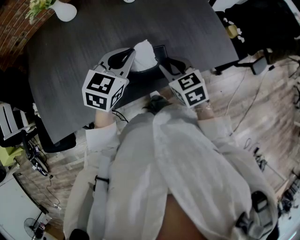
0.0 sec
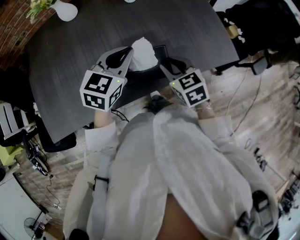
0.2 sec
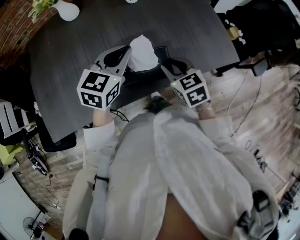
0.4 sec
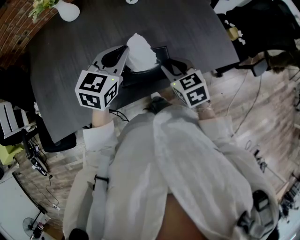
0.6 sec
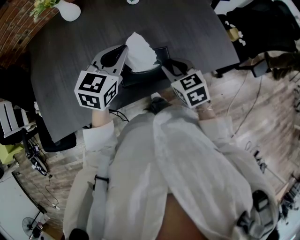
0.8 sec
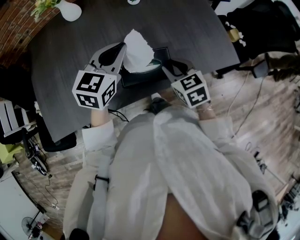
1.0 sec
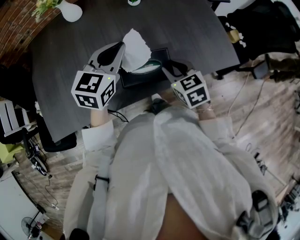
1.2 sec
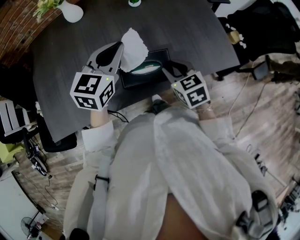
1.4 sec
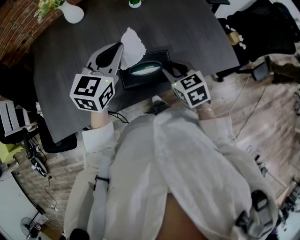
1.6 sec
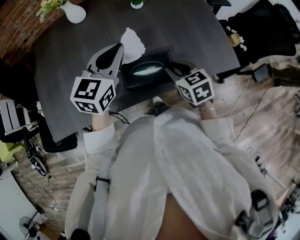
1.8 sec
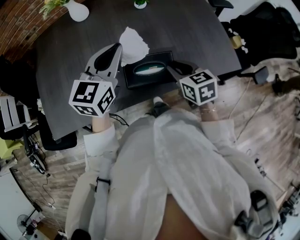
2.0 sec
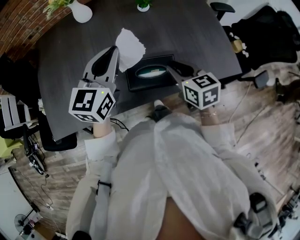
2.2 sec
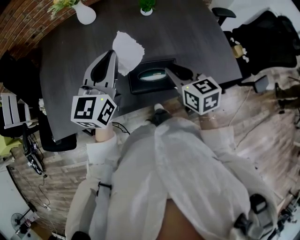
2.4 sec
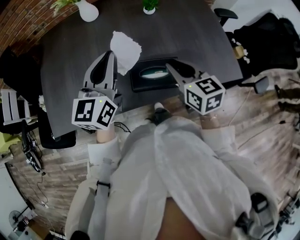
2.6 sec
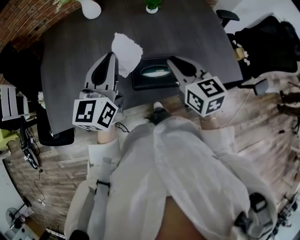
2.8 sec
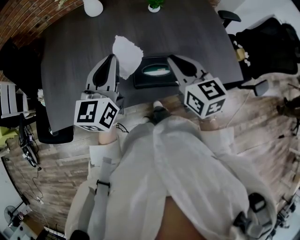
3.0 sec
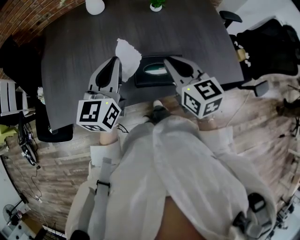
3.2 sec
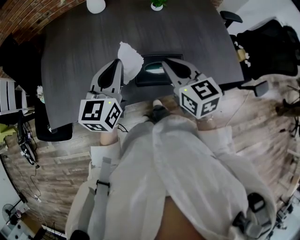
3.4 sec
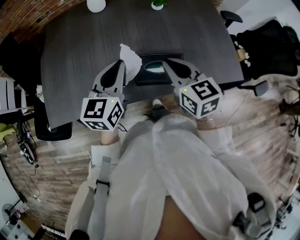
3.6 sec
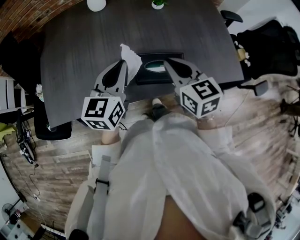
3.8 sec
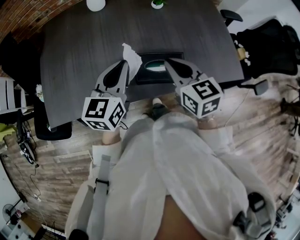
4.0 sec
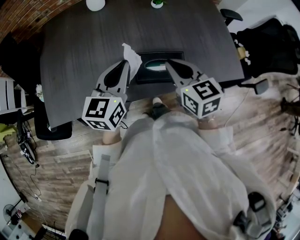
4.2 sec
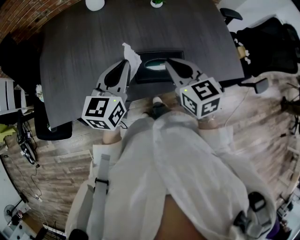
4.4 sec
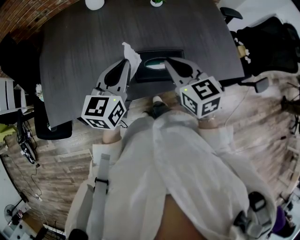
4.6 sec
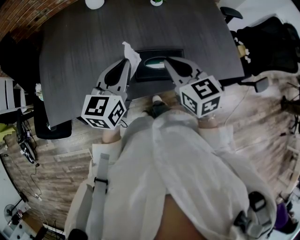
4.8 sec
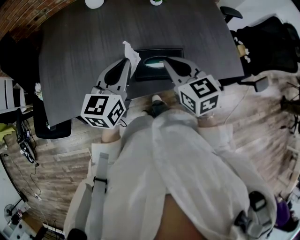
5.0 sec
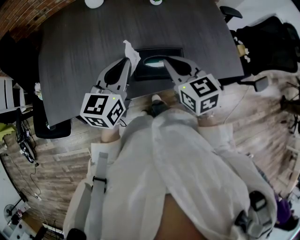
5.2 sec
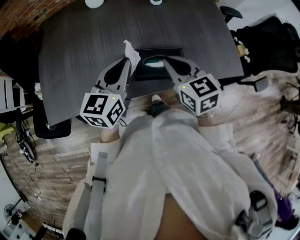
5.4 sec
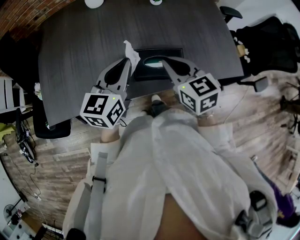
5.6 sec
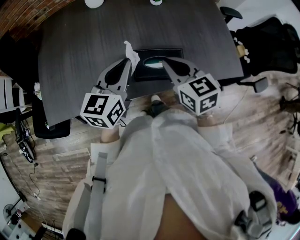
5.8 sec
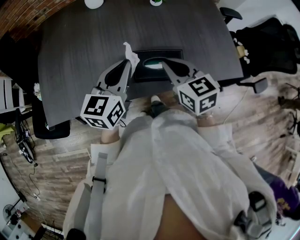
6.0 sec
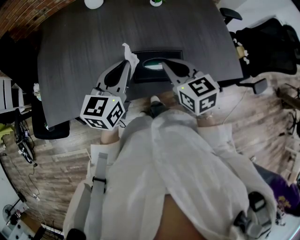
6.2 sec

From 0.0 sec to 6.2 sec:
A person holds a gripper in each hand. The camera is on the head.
From 0.0 sec to 1.6 sec: The left gripper shifts approximately 5 cm upward.
From 1.6 sec to 3.2 sec: The right gripper is displaced upward and to the left by some 15 cm, rotates about 20 degrees, and closes, while the left gripper goes roughly 10 cm to the left and backward, and turns by roughly 20 degrees.
From 3.2 sec to 6.2 sec: The grippers stay close to where they were, moving slightly.

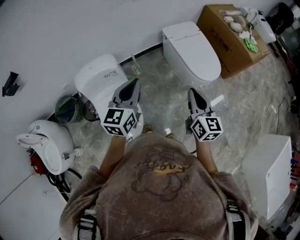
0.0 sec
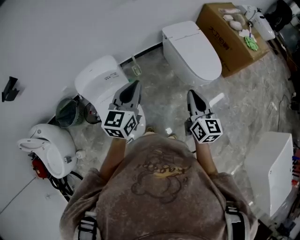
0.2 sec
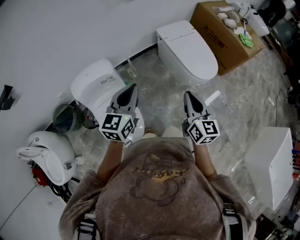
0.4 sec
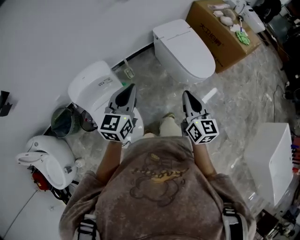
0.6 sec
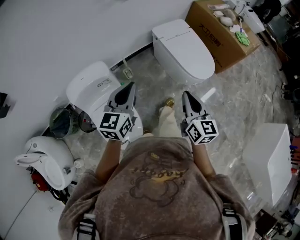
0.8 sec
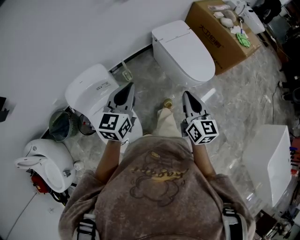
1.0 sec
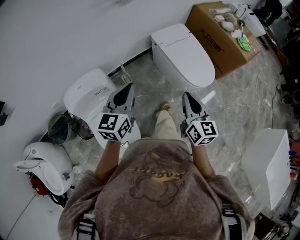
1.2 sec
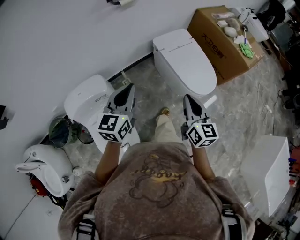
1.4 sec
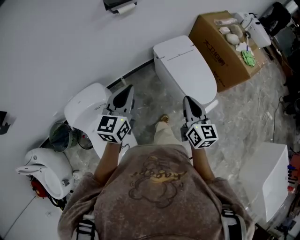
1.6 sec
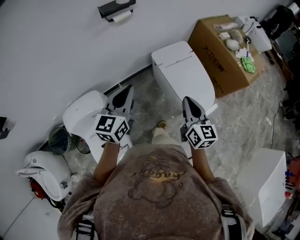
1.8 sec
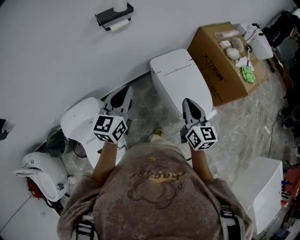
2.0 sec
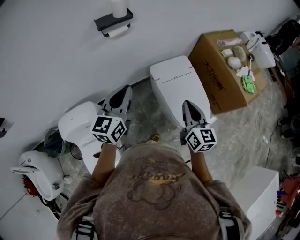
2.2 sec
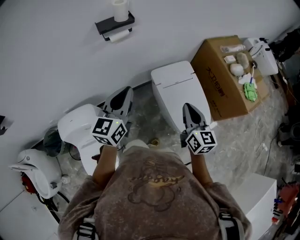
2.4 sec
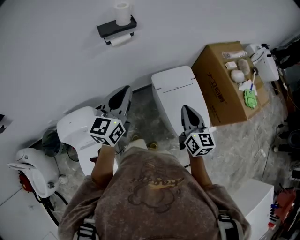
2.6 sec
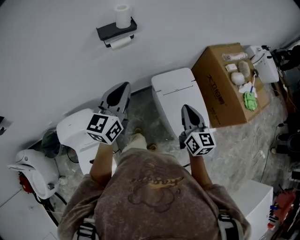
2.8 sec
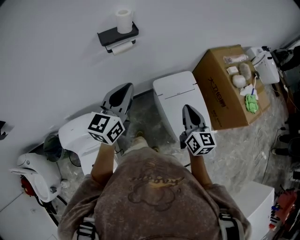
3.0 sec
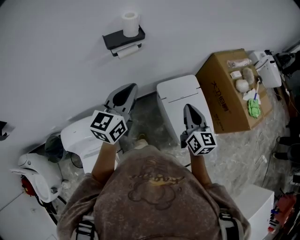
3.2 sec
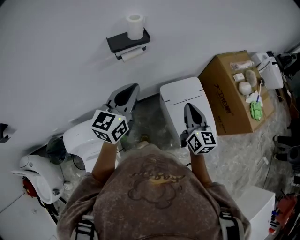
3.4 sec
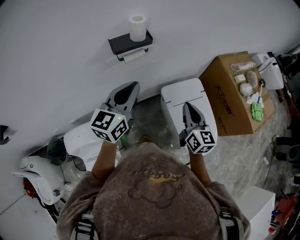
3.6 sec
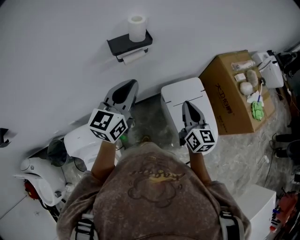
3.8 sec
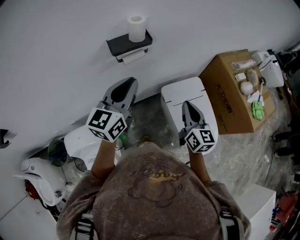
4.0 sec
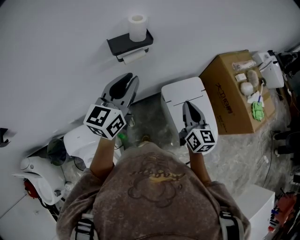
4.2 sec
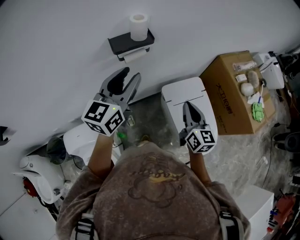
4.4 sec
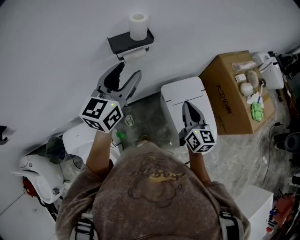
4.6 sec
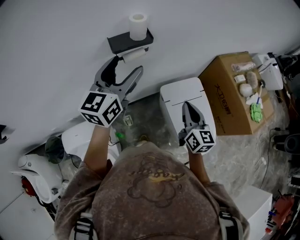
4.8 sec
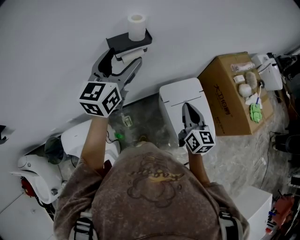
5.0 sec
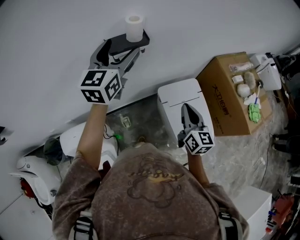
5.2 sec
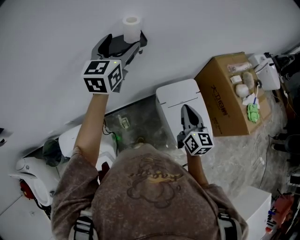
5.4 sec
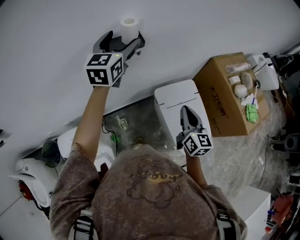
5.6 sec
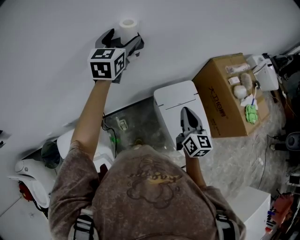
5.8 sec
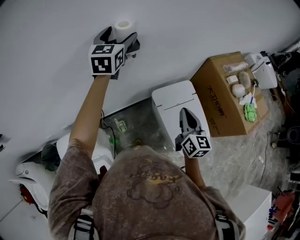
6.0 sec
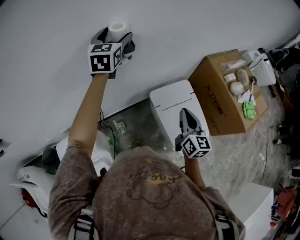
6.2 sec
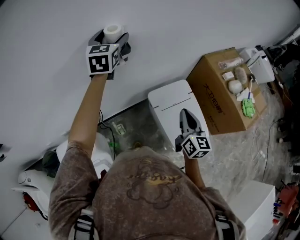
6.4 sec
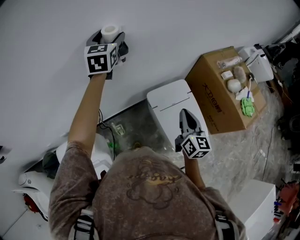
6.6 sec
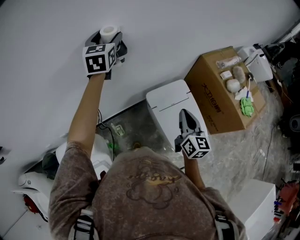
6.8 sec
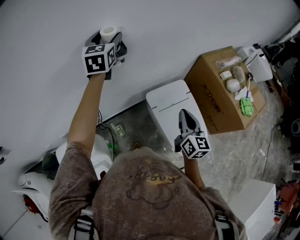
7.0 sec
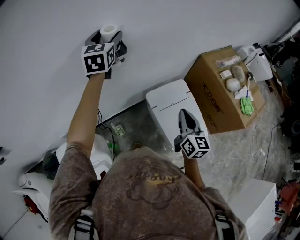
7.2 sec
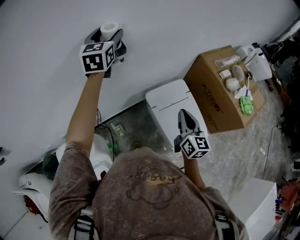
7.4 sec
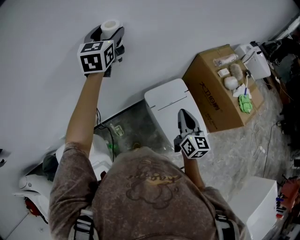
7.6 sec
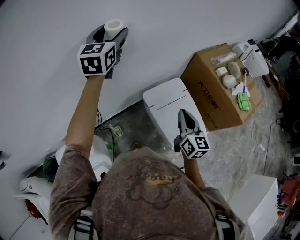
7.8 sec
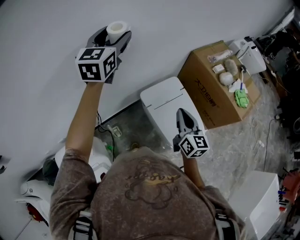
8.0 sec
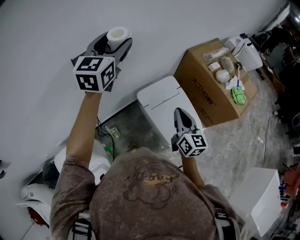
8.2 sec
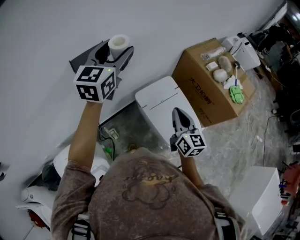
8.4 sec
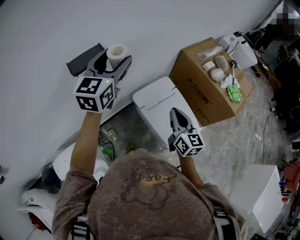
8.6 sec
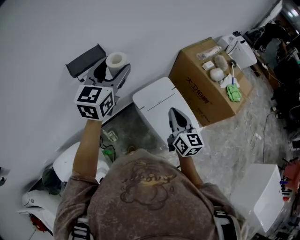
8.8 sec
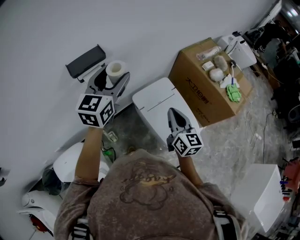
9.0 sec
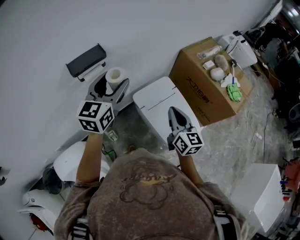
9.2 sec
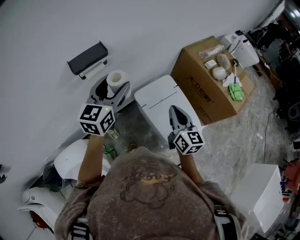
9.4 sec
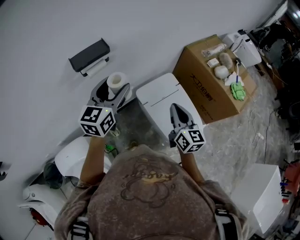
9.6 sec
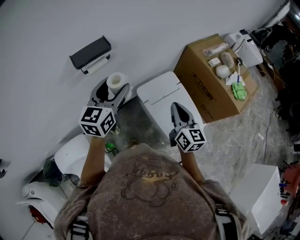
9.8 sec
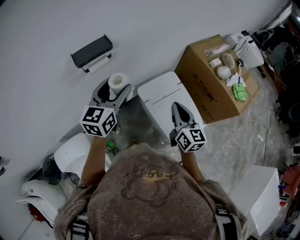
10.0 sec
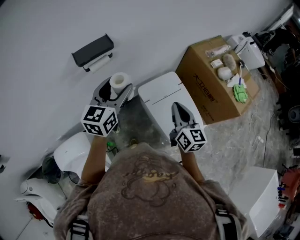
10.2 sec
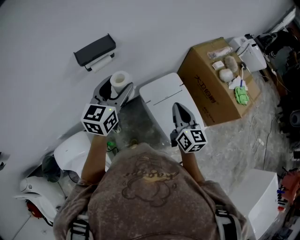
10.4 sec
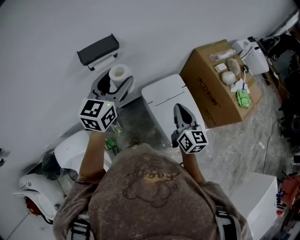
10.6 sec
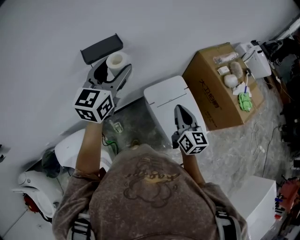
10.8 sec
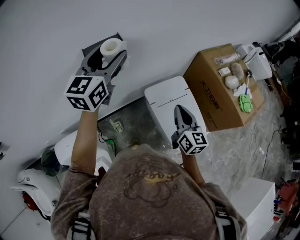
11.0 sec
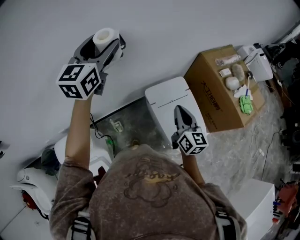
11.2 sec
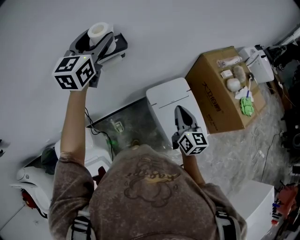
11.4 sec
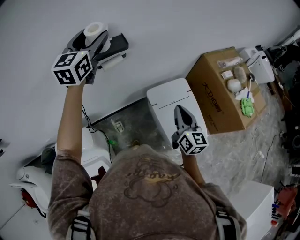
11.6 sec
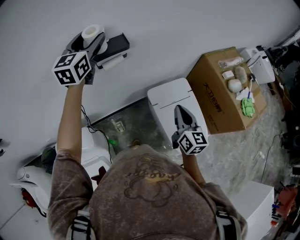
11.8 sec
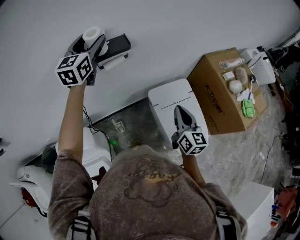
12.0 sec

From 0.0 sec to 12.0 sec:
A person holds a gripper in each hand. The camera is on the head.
From 0.0 sec to 1.6 sec: Both grippers travel together forward, roughly 20 cm.
From 1.6 sec to 3.0 sec: The grippers both shift forward by approximately 25 cm.
From 3.0 sec to 4.4 sec: Both grippers move forward and to the left, roughly 10 cm.
From 4.4 sec to 6.0 sec: The left gripper goes some 20 cm forward, and opens up.
From 6.0 sec to 7.6 sec: The grippers make only small movements.
From 7.6 sec to 9.0 sec: The left gripper shifts approximately 20 cm backward, to the right and downward, and rotates approximately 20 degrees.
From 9.0 sec to 10.4 sec: The left gripper heads downward, covering about 5 cm.
From 10.4 sec to 12.0 sec: The left gripper moves to the left, forward and upward, some 25 cm, and rotates approximately 20 degrees.

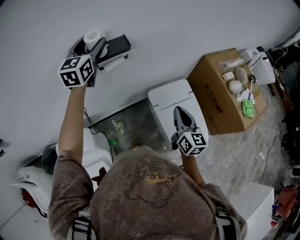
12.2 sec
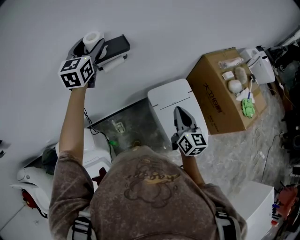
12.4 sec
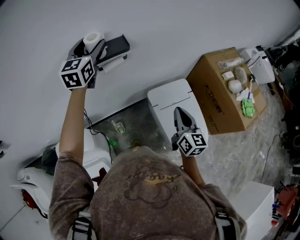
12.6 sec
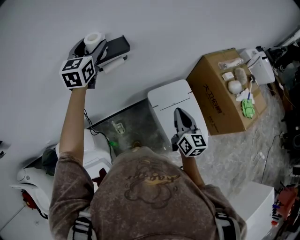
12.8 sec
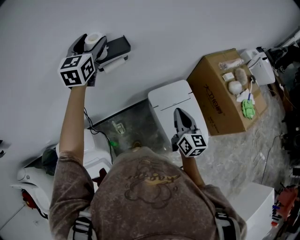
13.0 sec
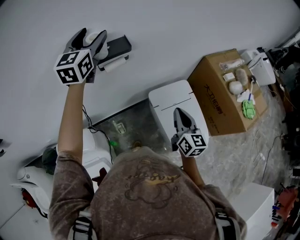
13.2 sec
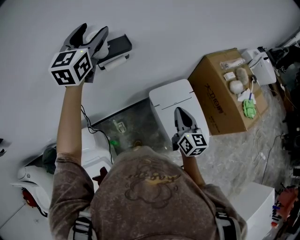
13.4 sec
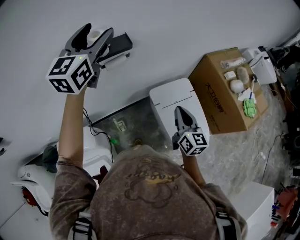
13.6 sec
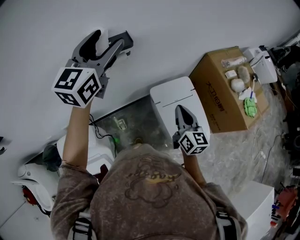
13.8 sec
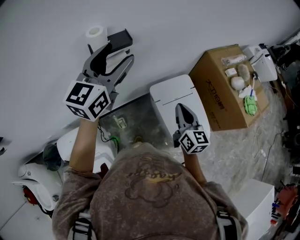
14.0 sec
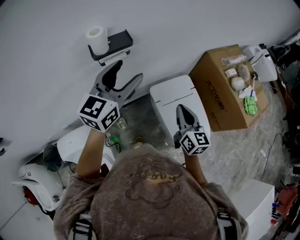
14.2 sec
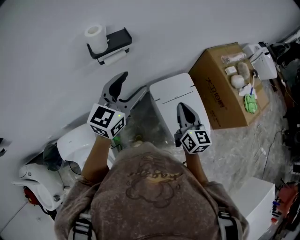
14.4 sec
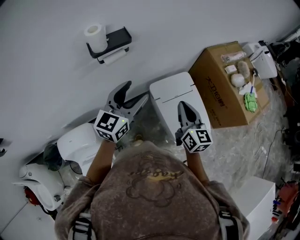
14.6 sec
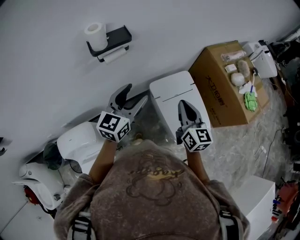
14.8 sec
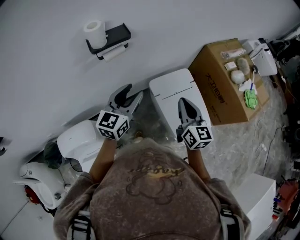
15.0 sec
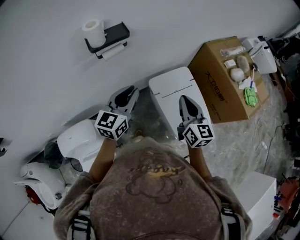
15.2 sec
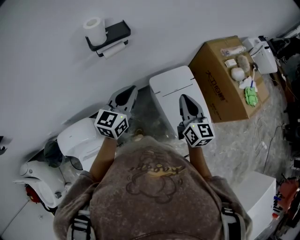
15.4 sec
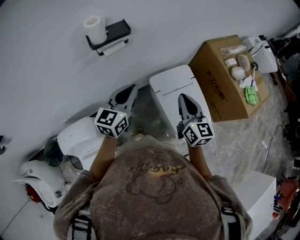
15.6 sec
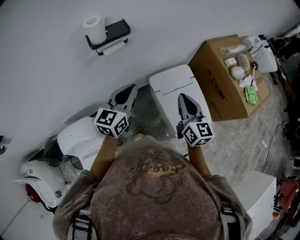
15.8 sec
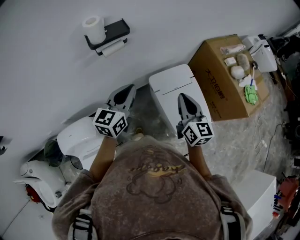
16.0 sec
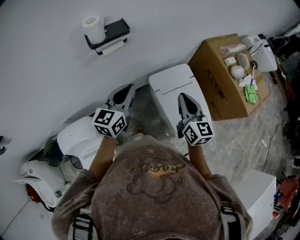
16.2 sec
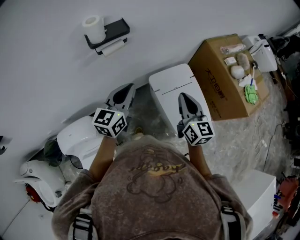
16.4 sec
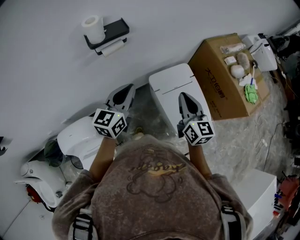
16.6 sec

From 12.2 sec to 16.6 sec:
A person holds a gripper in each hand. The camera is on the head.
From 12.2 sec to 13.6 sec: The left gripper goes some 10 cm upward and backward.
From 13.6 sec to 15.2 sec: The left gripper shifts about 30 cm downward, backward and to the right, changes its angle by roughly 20 degrees, and closes.
From 15.2 sec to 16.6 sec: The two grippers keep their place.

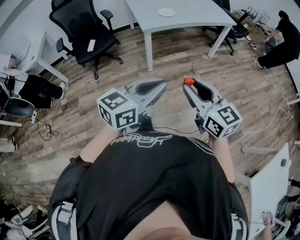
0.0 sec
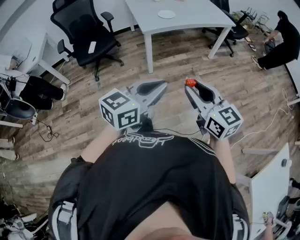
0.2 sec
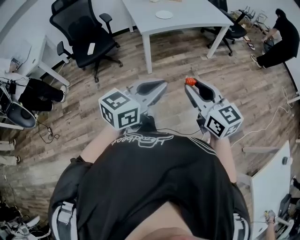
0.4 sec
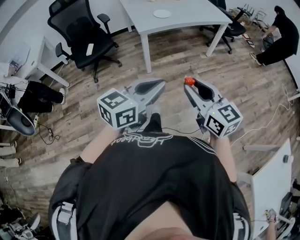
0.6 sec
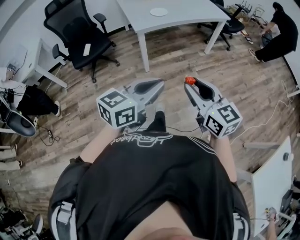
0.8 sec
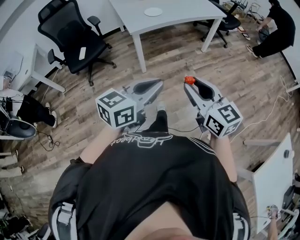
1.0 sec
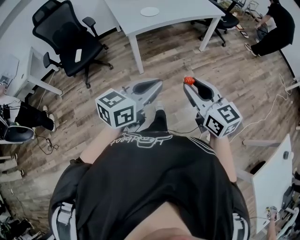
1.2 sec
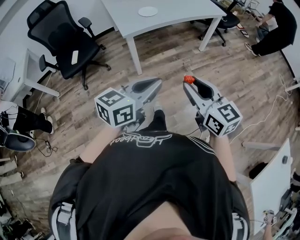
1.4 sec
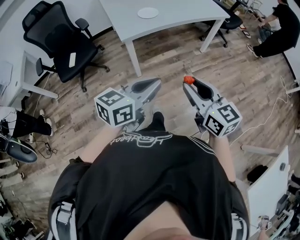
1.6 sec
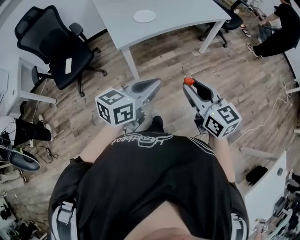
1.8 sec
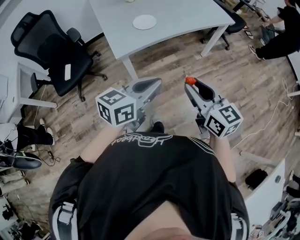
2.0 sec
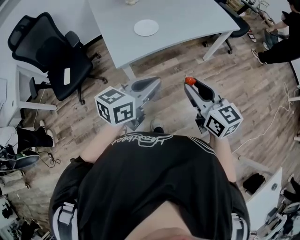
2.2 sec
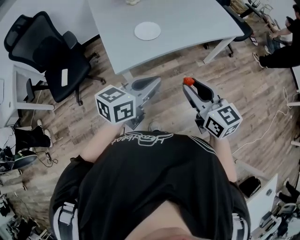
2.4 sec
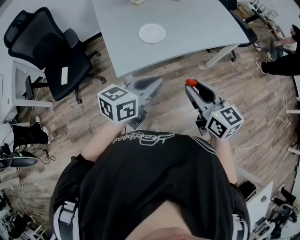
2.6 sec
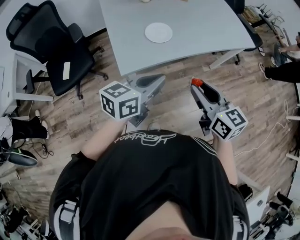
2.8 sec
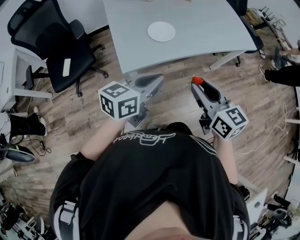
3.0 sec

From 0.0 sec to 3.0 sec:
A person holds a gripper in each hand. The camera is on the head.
From 0.0 sec to 1.6 sec: Both grippers move forward, approximately 20 cm.
From 1.6 sec to 3.0 sec: The grippers both shift forward by approximately 35 cm.
